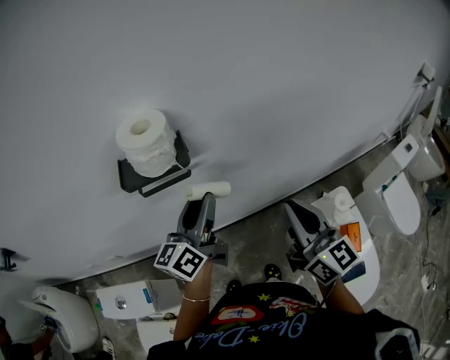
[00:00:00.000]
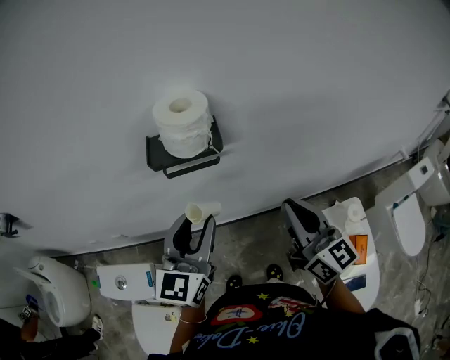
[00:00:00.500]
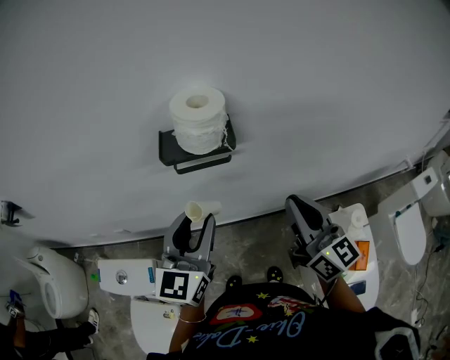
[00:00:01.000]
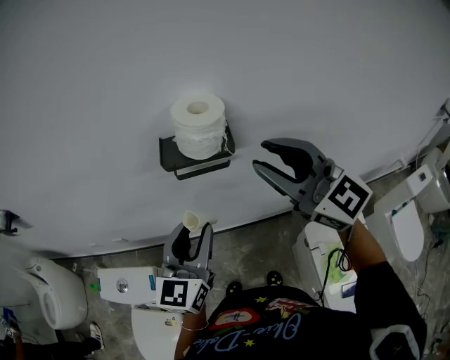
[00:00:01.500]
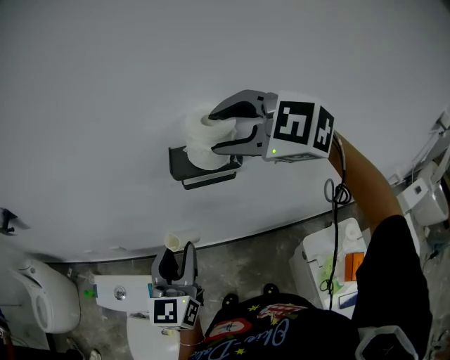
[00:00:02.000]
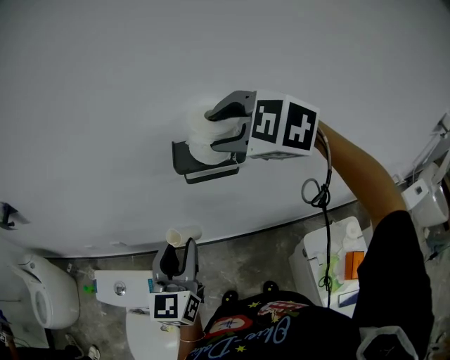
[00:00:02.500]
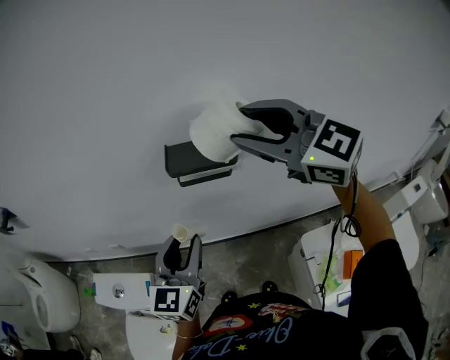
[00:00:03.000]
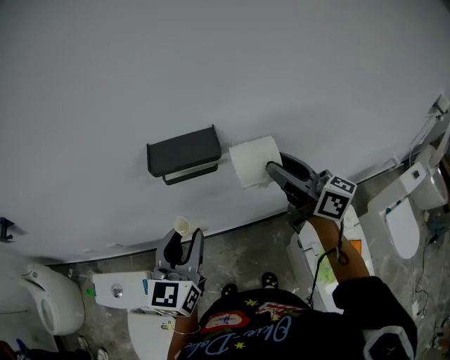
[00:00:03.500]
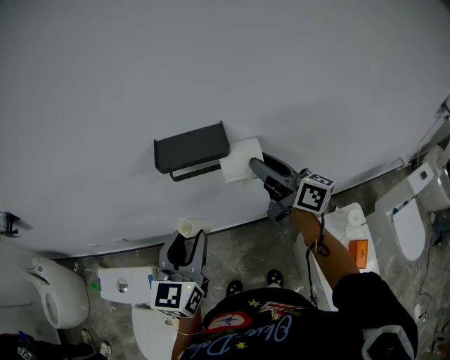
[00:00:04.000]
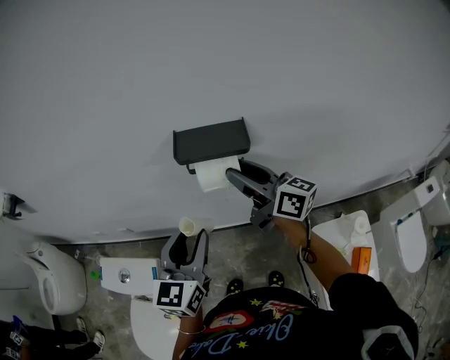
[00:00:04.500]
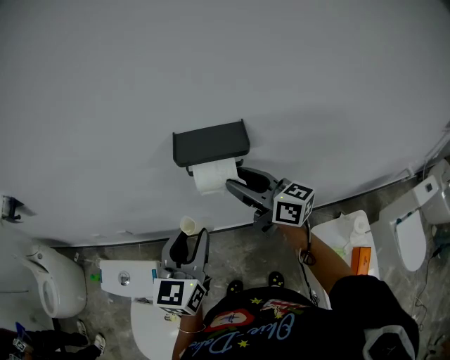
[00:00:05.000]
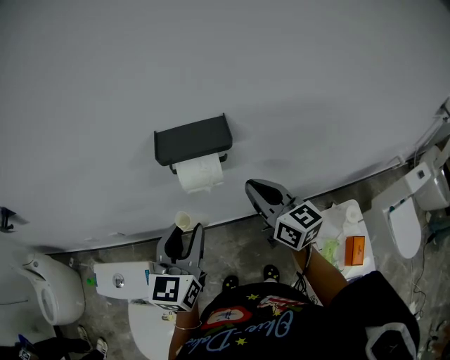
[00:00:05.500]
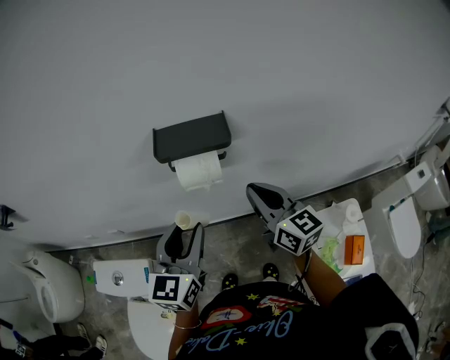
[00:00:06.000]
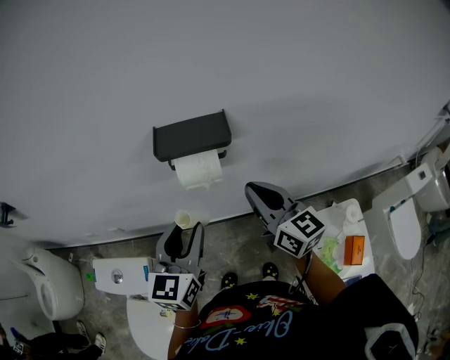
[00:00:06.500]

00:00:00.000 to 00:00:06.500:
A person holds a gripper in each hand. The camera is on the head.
00:00:00.000 to 00:00:02.000: The left gripper shifts by some 20 cm, and swivels approximately 40 degrees. Meanwhile the right gripper shifts by approximately 30 cm, points its fingers about 40 degrees further downward, and opens.
00:00:02.000 to 00:00:04.500: The right gripper heads downward, covering roughly 15 cm, and rolls clockwise, seen from behind, by approximately 70 degrees.
00:00:04.500 to 00:00:06.500: The right gripper shifts approximately 10 cm backward and to the right, rotates about 30 degrees, and closes up.

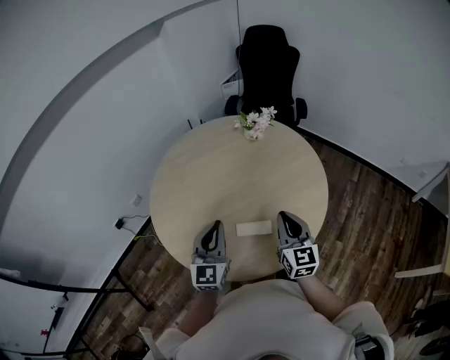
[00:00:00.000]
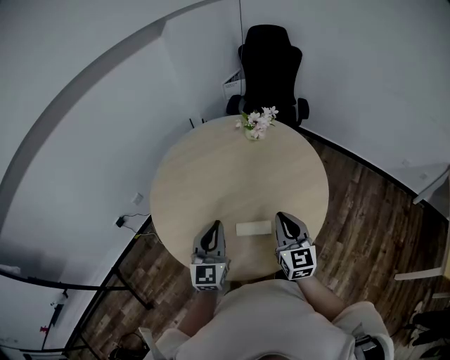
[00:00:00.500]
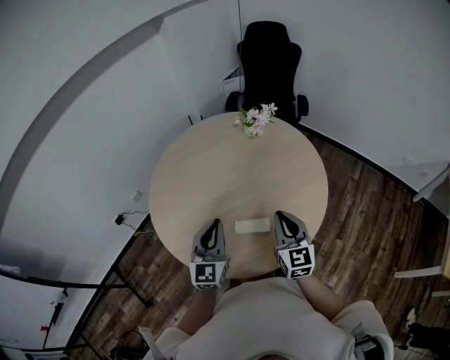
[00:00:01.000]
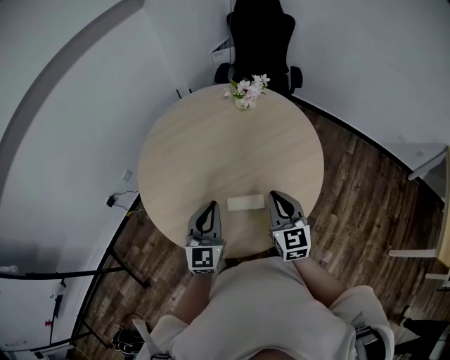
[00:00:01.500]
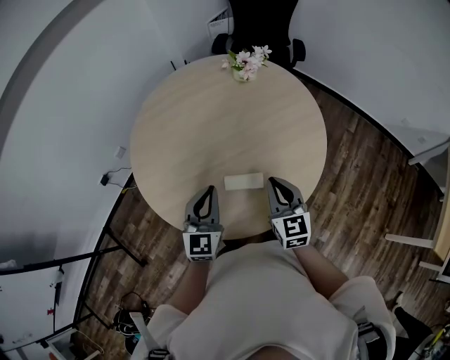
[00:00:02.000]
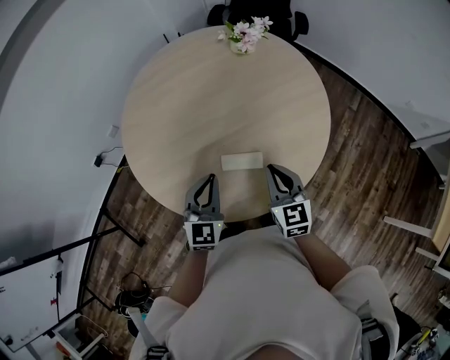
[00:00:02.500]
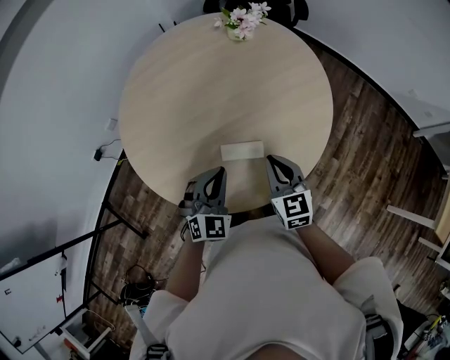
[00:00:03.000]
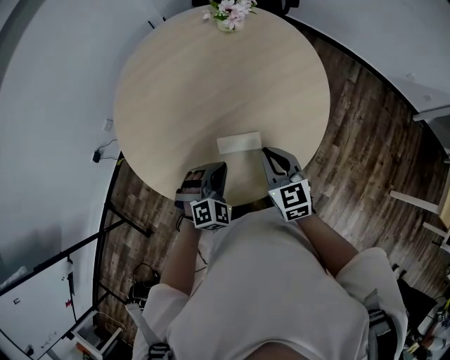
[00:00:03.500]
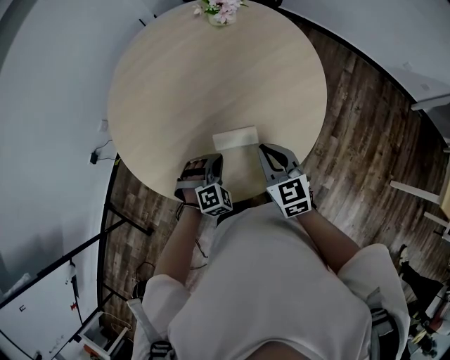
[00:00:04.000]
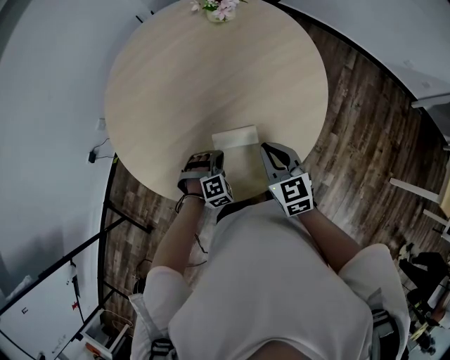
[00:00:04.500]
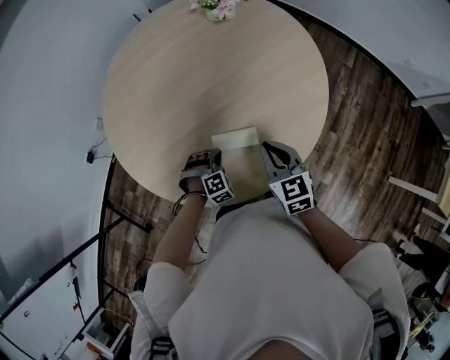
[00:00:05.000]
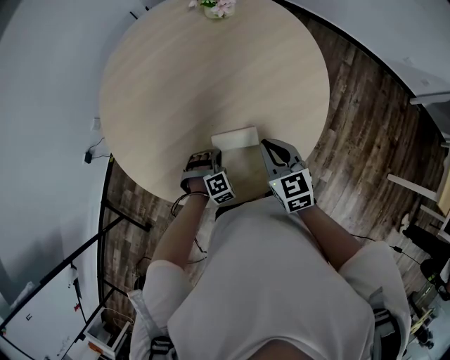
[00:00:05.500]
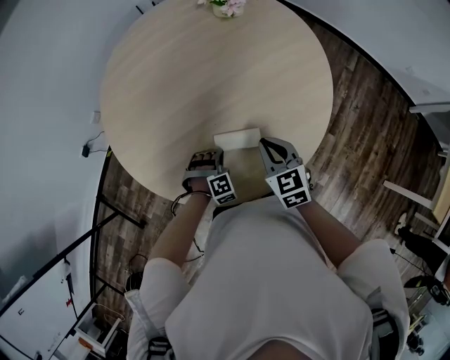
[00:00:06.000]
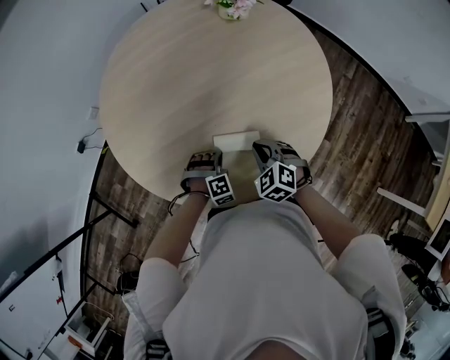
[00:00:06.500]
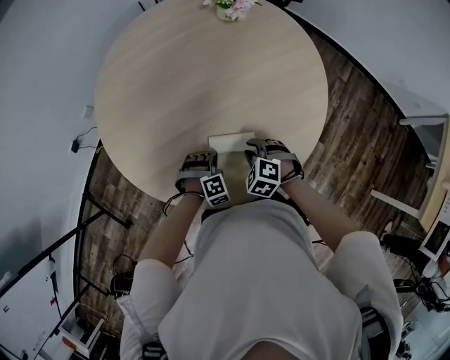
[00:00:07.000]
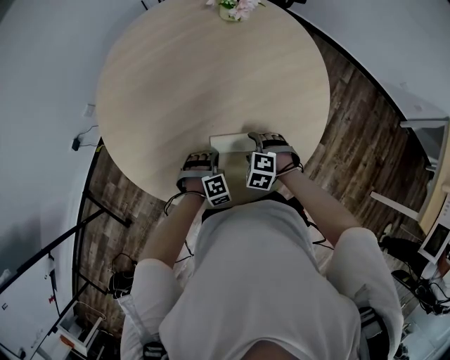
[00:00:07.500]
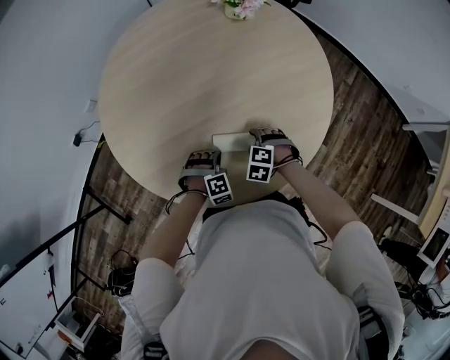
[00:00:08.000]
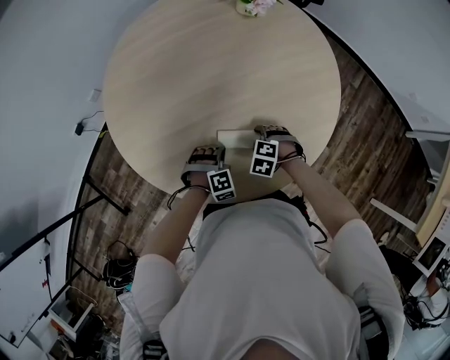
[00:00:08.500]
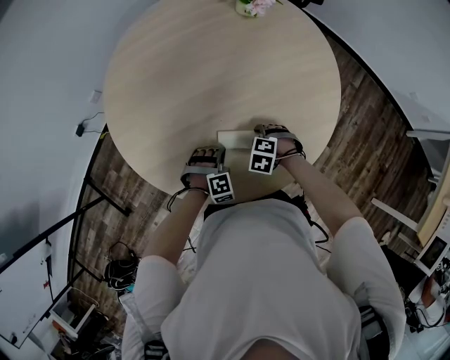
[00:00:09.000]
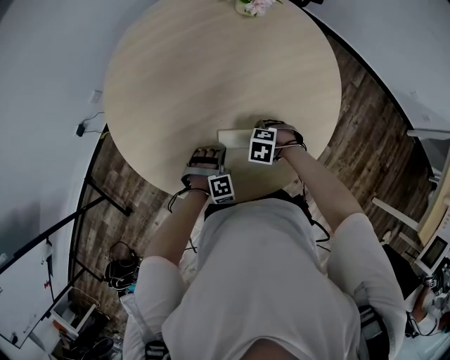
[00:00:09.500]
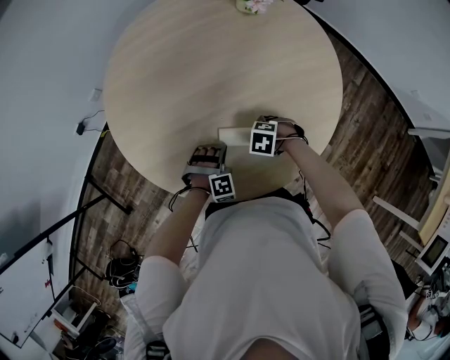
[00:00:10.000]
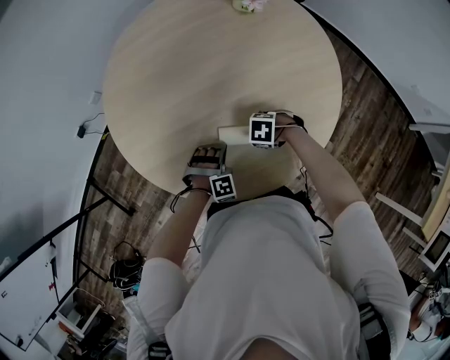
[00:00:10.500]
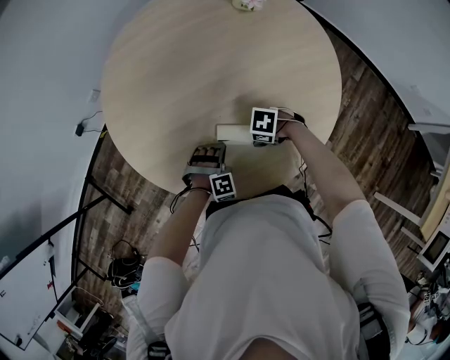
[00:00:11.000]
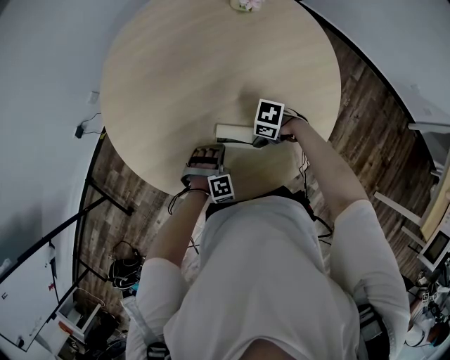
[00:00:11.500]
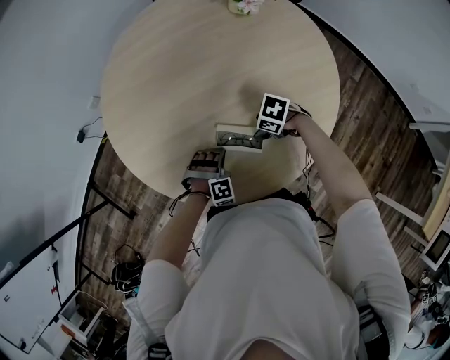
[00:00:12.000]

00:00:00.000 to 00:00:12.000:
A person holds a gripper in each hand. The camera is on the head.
00:00:00.000 to 00:00:02.000: Both grippers move downward, approximately 5 cm.
00:00:02.000 to 00:00:04.000: The right gripper shifts roughly 10 cm downward, while the left gripper travels downward by some 20 cm, and angles its fingers downward, by about 40 degrees.
00:00:04.000 to 00:00:06.000: The left gripper travels downward by approximately 10 cm, while the right gripper changes place by roughly 5 cm.
00:00:06.000 to 00:00:08.000: The right gripper travels downward by some 15 cm, angles its fingers downward, by approximately 40 degrees, and opens up.
00:00:08.000 to 00:00:10.000: The grippers stay close to where they were, moving slightly.
00:00:10.000 to 00:00:12.000: The right gripper ends up roughly 5 cm from where it was, and swivels approximately 20 degrees.

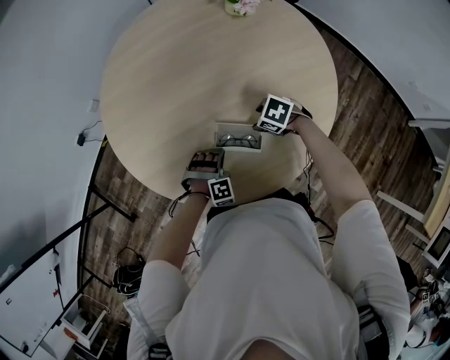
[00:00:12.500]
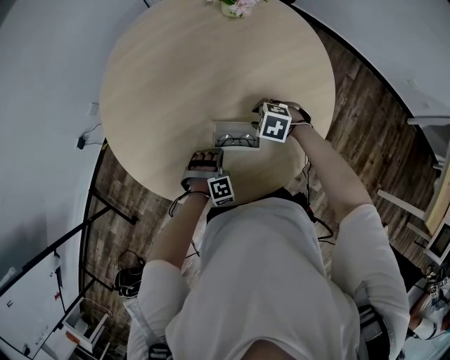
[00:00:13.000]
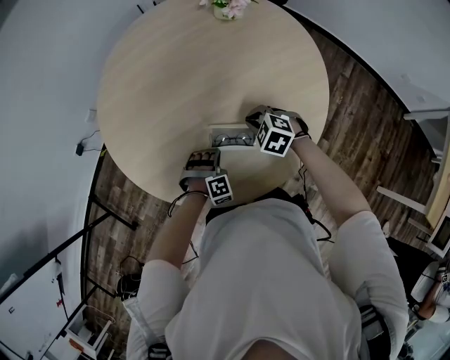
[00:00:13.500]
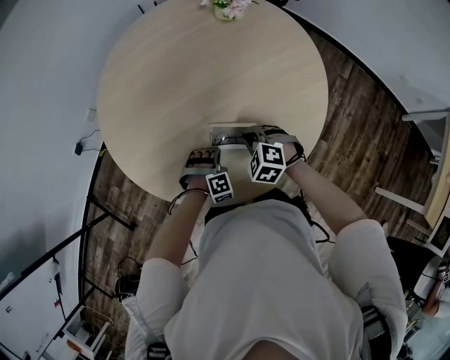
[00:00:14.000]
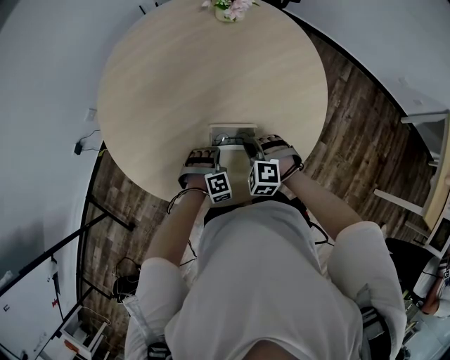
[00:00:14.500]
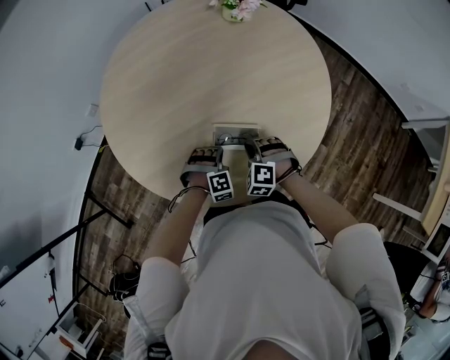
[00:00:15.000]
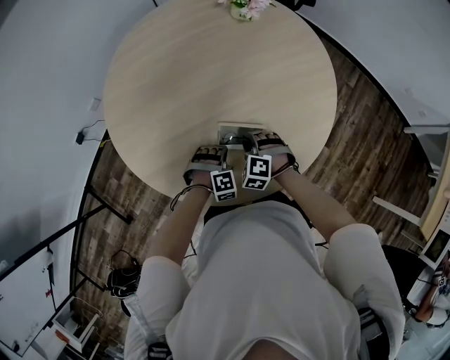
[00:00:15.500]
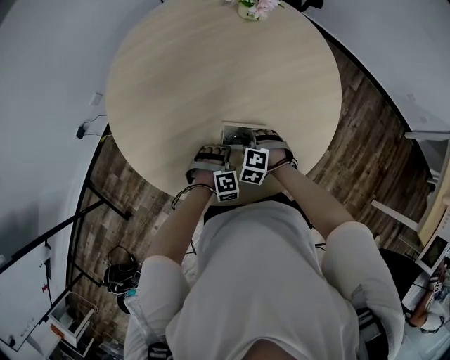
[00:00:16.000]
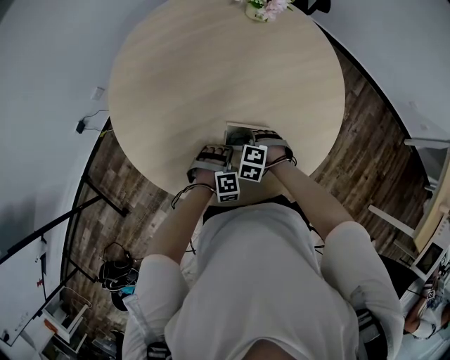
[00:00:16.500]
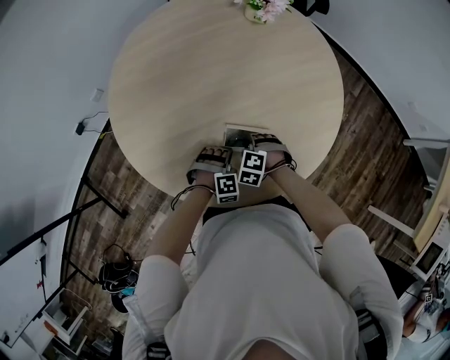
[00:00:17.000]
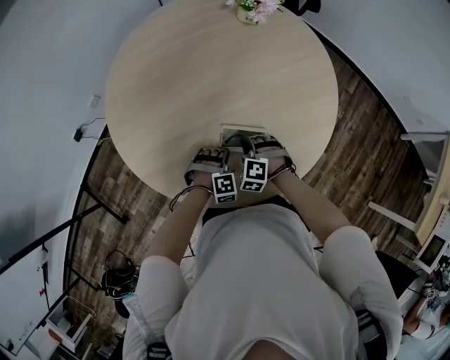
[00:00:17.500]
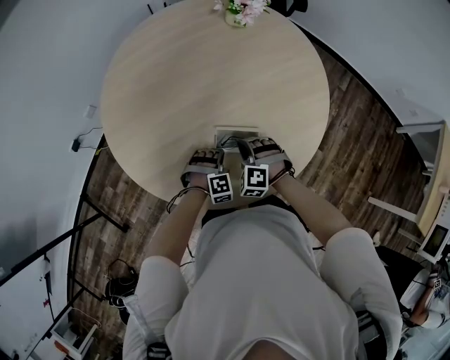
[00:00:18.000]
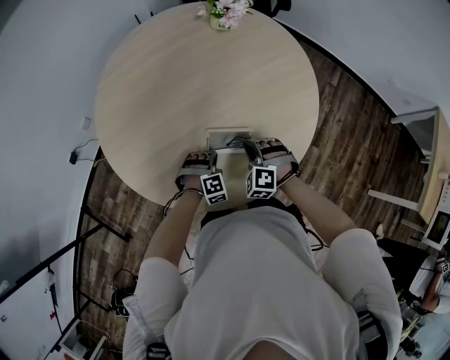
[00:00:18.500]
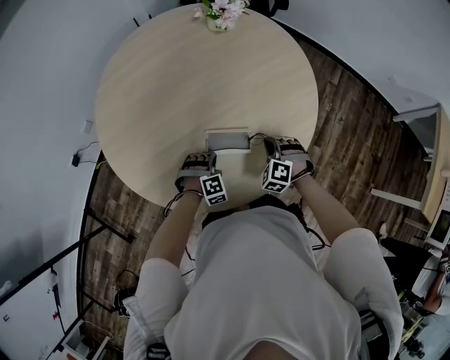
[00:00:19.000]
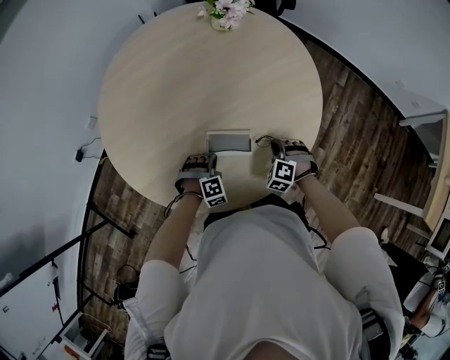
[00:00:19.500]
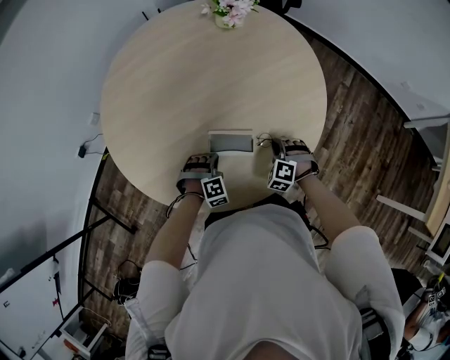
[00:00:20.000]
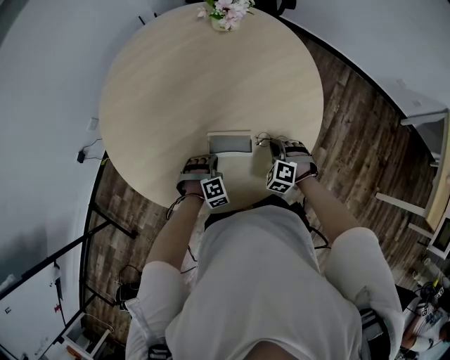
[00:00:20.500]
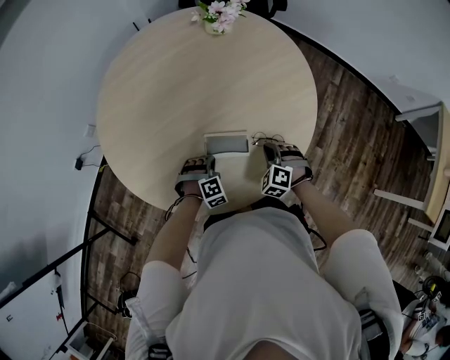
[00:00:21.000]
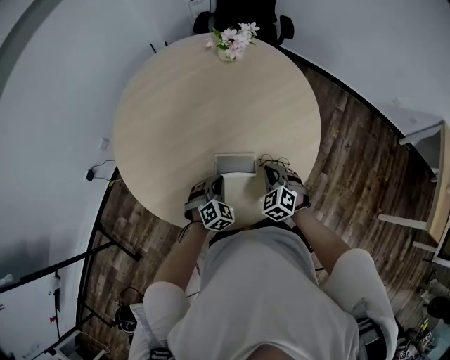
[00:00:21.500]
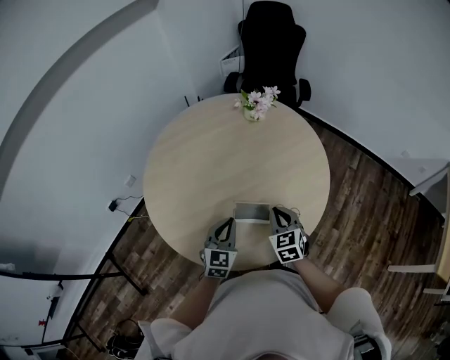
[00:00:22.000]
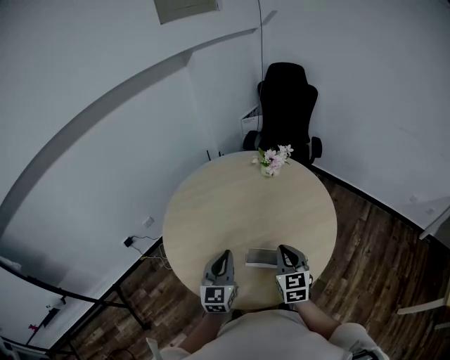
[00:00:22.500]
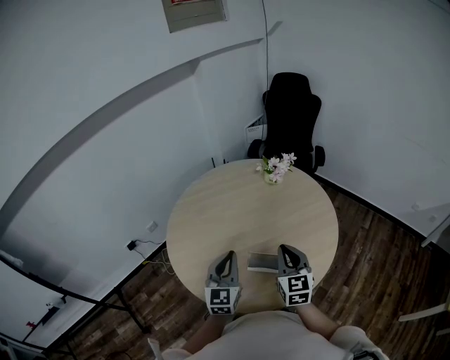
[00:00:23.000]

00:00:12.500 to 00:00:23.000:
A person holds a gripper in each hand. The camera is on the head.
00:00:12.500 to 00:00:14.500: The right gripper changes place by about 10 cm, swivels approximately 40 degrees, and closes.
00:00:14.500 to 00:00:16.500: The right gripper is displaced downward by some 5 cm.
00:00:16.500 to 00:00:19.000: The right gripper heads to the right, covering approximately 15 cm, and changes its angle by some 20 degrees.
00:00:19.000 to 00:00:21.000: The grippers make only small movements.
00:00:21.000 to 00:00:23.000: Both grippers move upward, some 35 cm. The right gripper points its fingers some 40 degrees further upward; the left gripper angles its fingers upward, by some 60 degrees.
